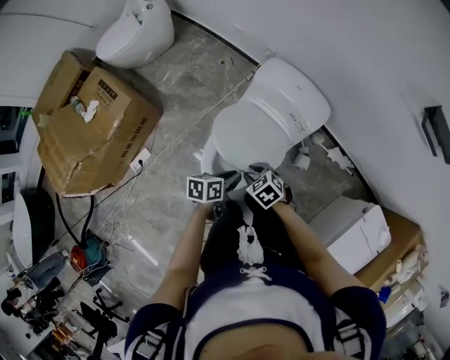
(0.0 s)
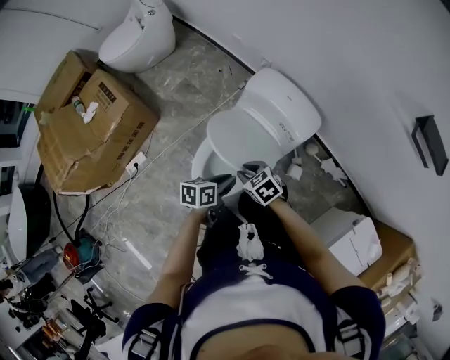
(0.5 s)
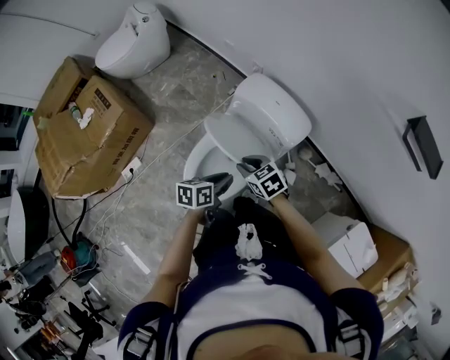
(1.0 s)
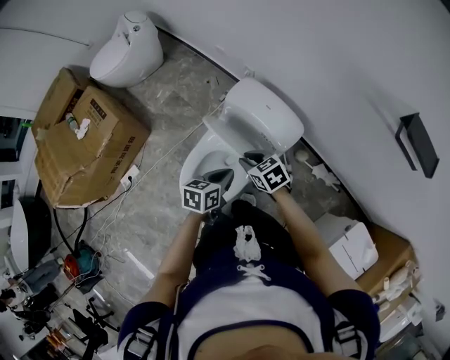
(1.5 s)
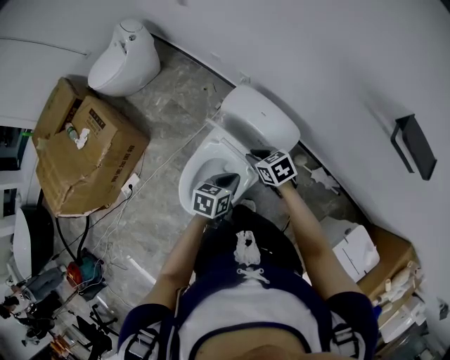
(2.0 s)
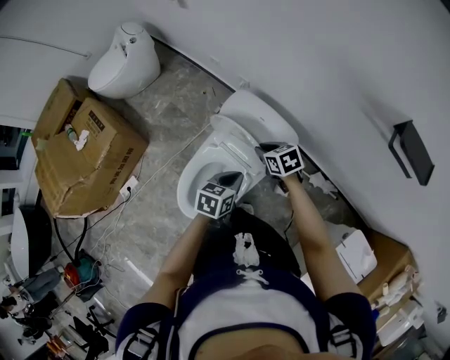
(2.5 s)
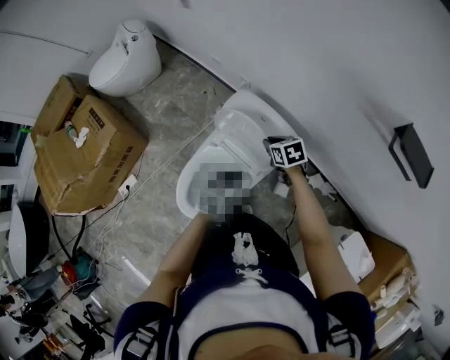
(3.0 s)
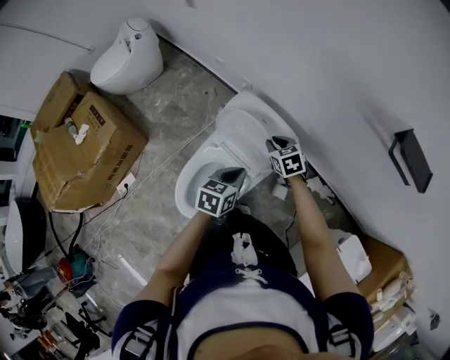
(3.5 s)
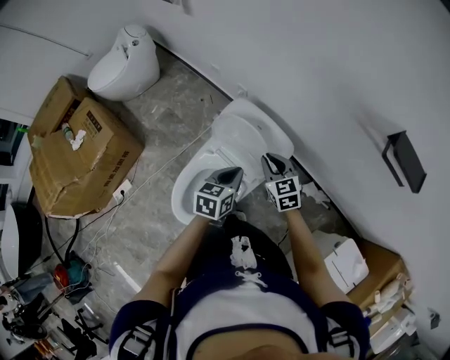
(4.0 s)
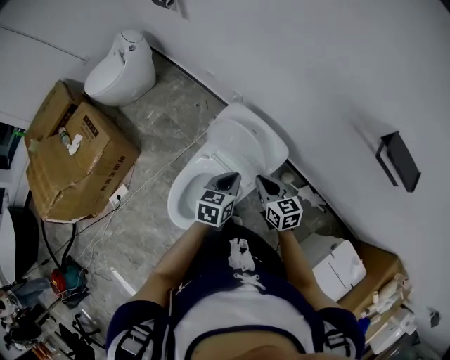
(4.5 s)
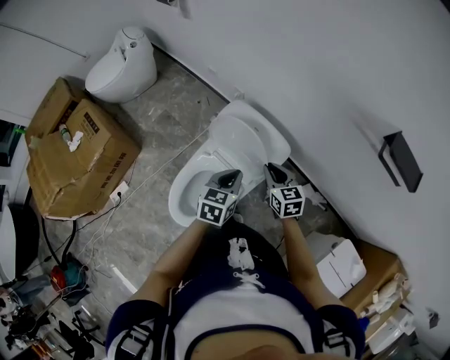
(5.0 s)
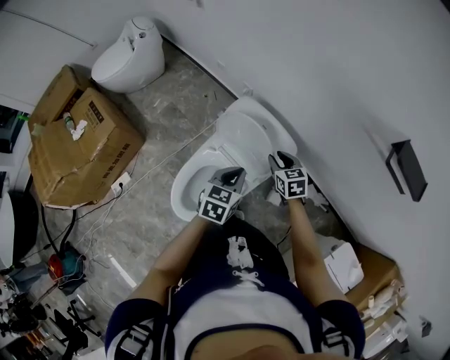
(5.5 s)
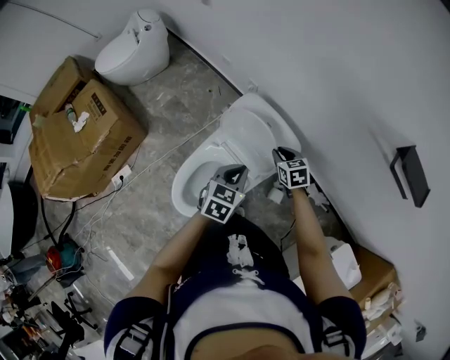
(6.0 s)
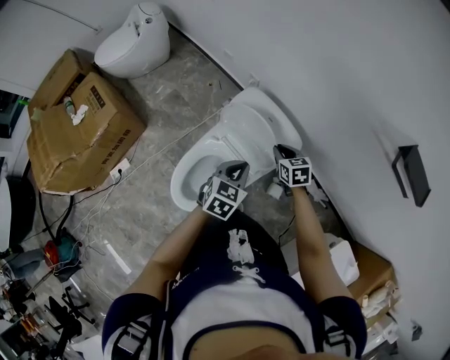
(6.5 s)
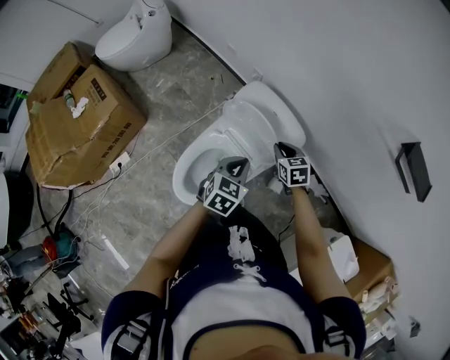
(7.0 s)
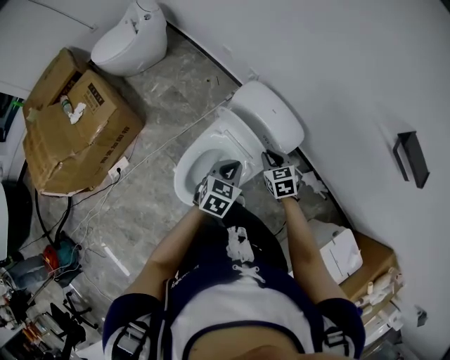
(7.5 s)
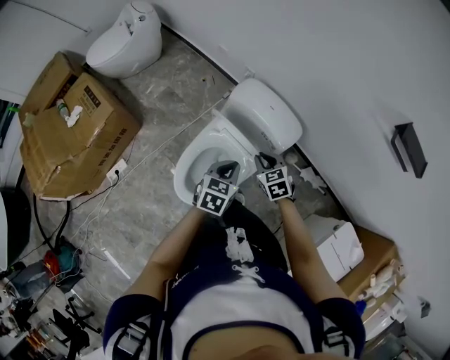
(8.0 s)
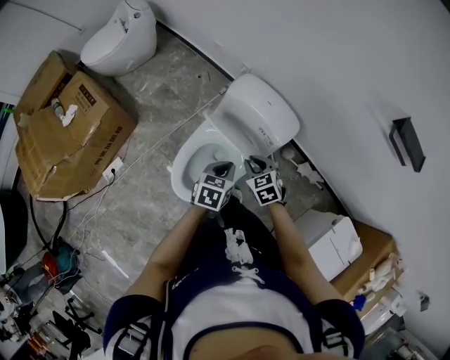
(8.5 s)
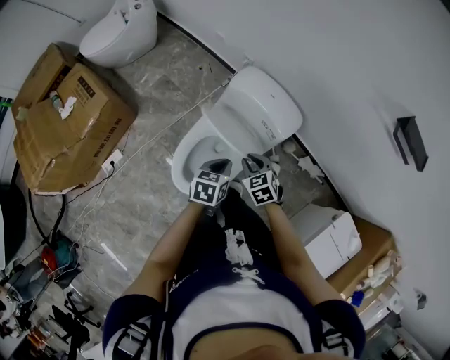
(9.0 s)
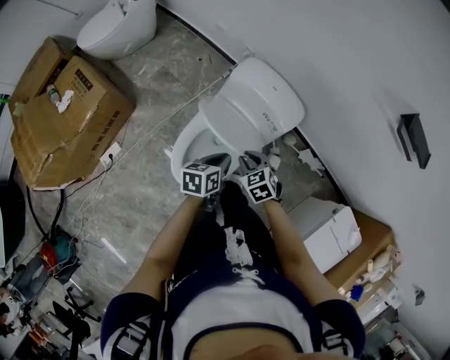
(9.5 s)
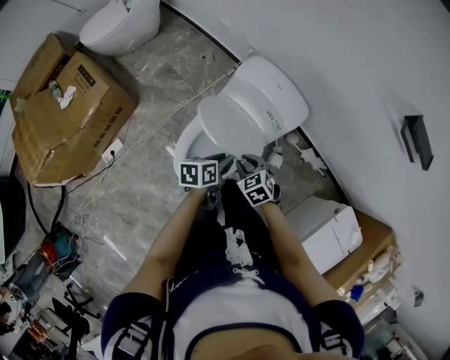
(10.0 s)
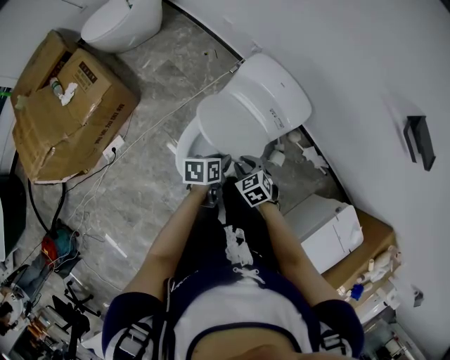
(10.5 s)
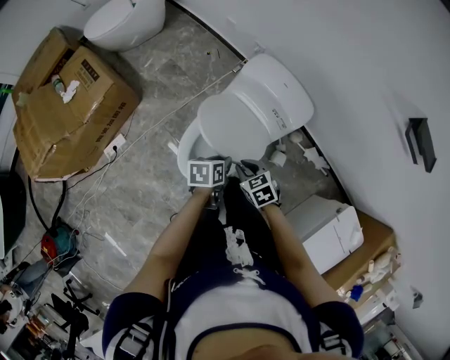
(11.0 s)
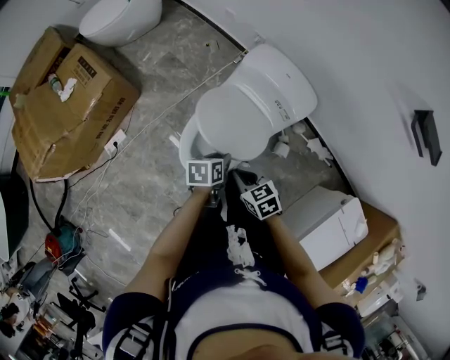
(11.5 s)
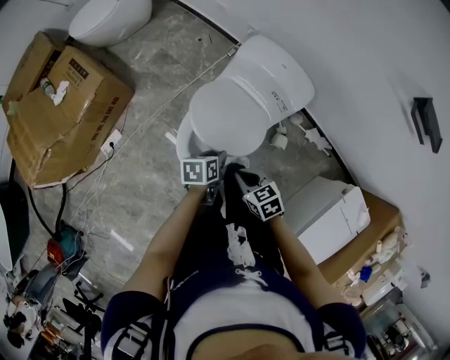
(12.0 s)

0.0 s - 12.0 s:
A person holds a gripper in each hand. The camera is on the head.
0.0 s - 2.0 s: Both grippers travel together to the right and forward, about 20 cm. The left gripper rotates roughly 20 degrees.
2.0 s - 4.0 s: The right gripper shifts approximately 5 cm to the right, moves about 10 cm forward and comes back, and swivels about 30 degrees; the left gripper shifts some 10 cm upward and forward.
4.0 s - 6.0 s: The right gripper shifts approximately 10 cm downward.
6.0 s - 8.0 s: The right gripper goes some 15 cm backward and to the left, while the left gripper shifts some 10 cm to the left and backward.
8.0 s - 10.0 s: The left gripper heads downward, covering some 5 cm, turns by approximately 40 degrees, and opens. The right gripper moves backward and to the left, roughly 10 cm.
10.0 s - 12.0 s: The left gripper changes place by approximately 10 cm. Meanwhile the right gripper shifts some 10 cm backward, and swivels approximately 20 degrees.

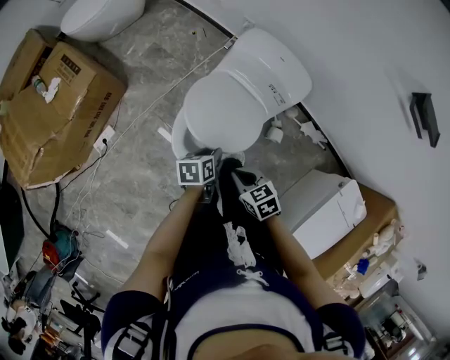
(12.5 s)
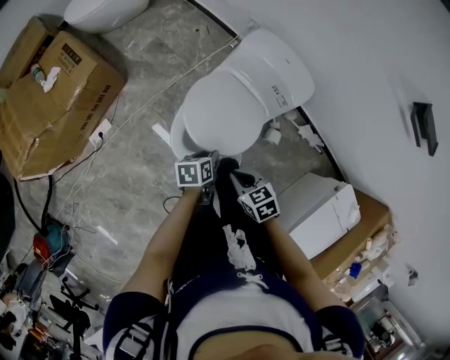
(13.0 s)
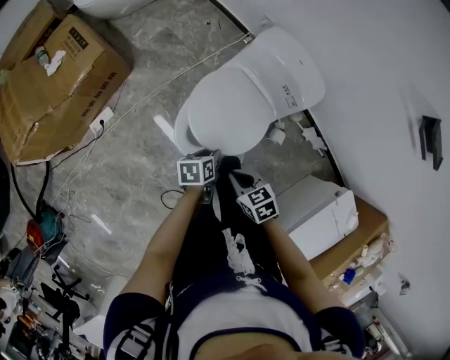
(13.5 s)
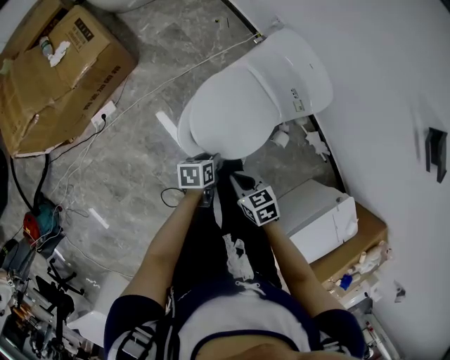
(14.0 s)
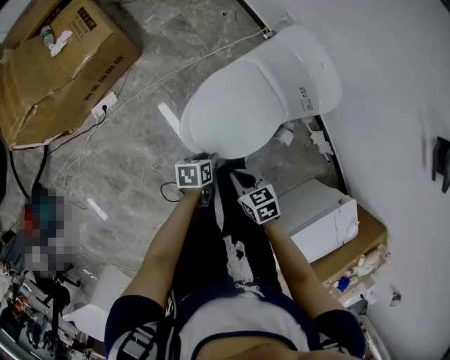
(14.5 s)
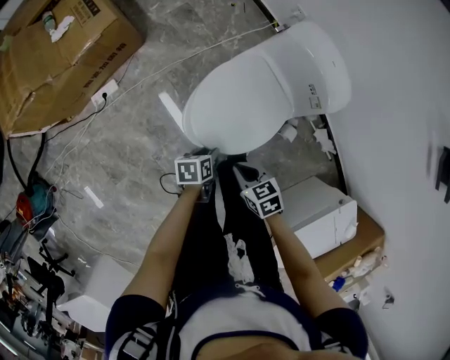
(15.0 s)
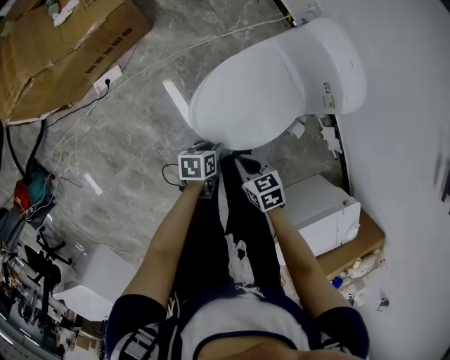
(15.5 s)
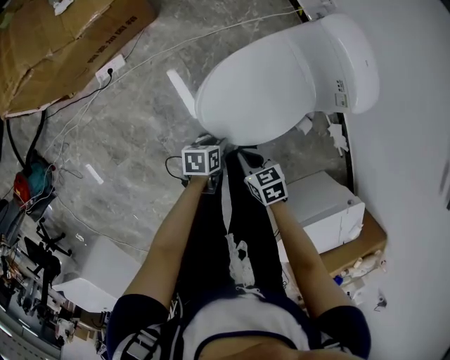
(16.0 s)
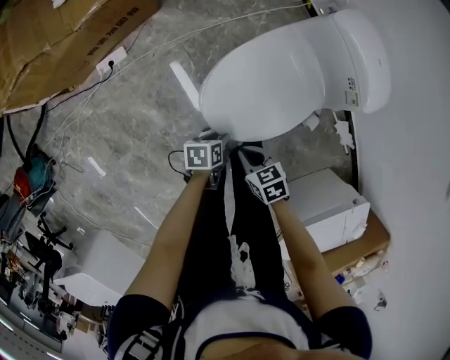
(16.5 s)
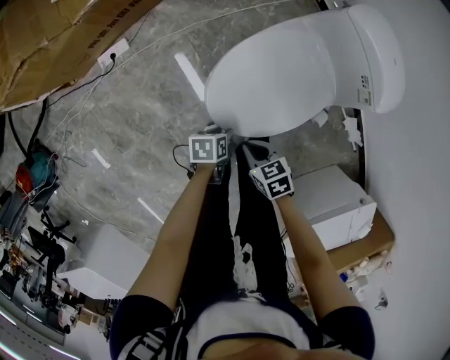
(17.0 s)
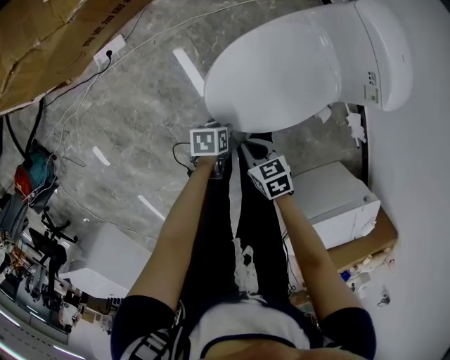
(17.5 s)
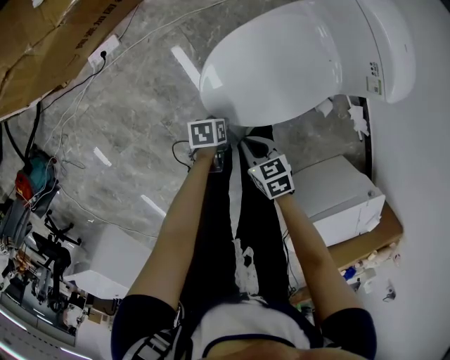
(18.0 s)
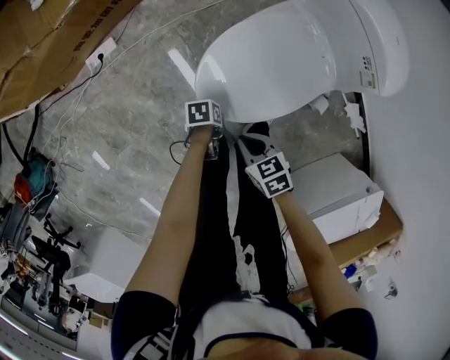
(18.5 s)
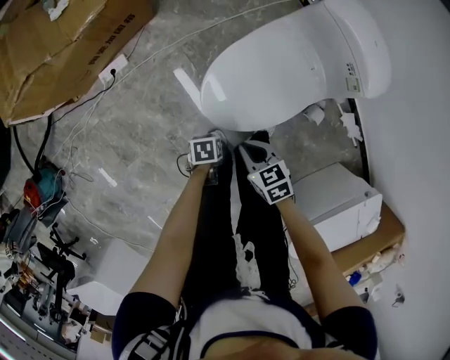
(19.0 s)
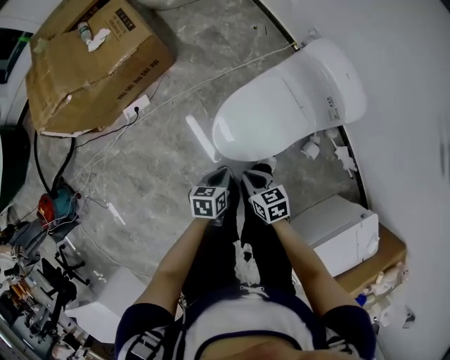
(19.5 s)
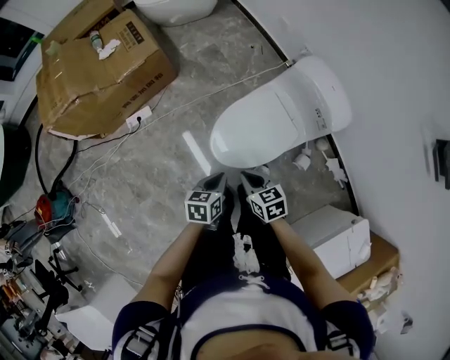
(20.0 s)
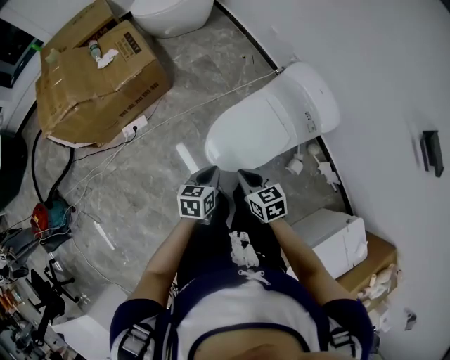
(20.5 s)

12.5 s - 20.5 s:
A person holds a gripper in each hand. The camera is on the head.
12.5 s - 14.5 s: The left gripper is displaced downward, to the left and backward by about 15 cm. Meanwhile the right gripper moves downward, roughly 5 cm.
14.5 s - 16.5 s: Both grippers travel together downward, about 10 cm.
16.5 s - 18.5 s: The left gripper moves downward, about 10 cm, and swivels roughly 20 degrees.
18.5 s - 20.5 s: Both grippers travel together upward, about 30 cm. The left gripper turns by about 50 degrees, and closes its fingers.

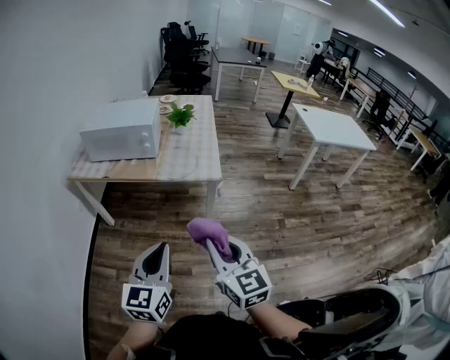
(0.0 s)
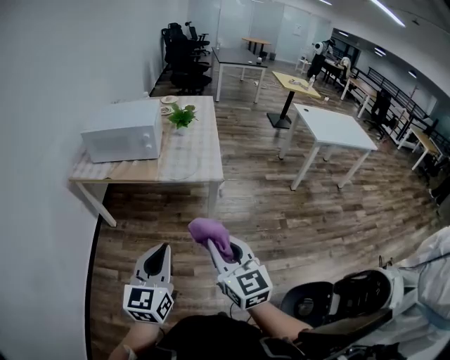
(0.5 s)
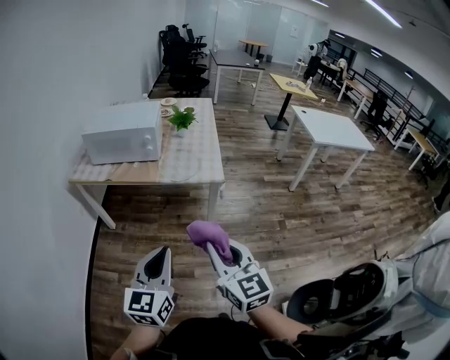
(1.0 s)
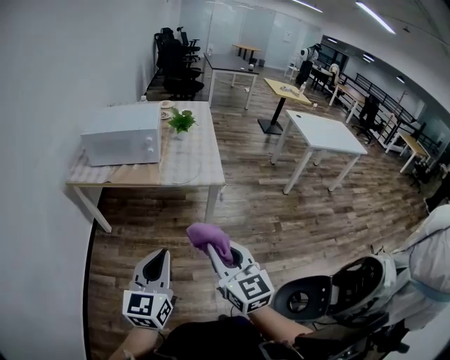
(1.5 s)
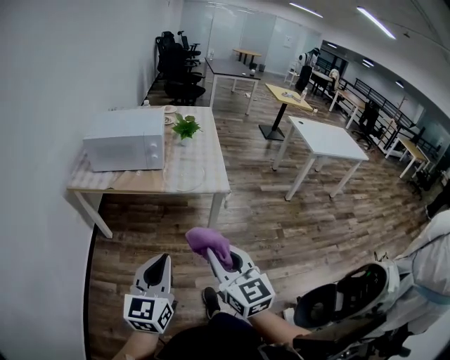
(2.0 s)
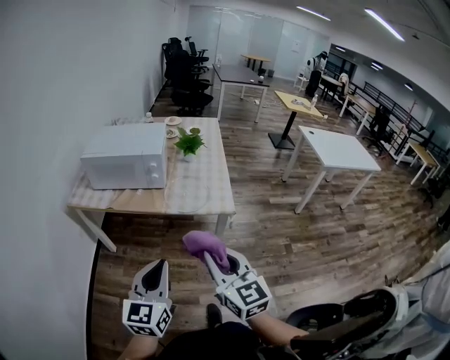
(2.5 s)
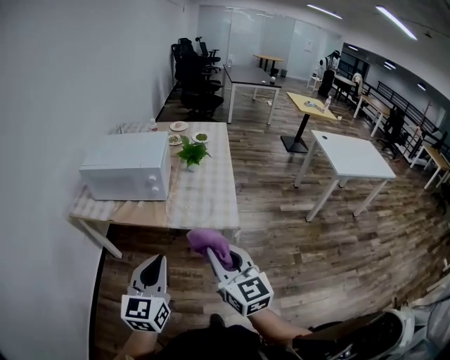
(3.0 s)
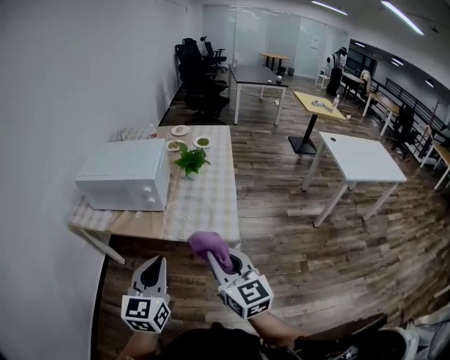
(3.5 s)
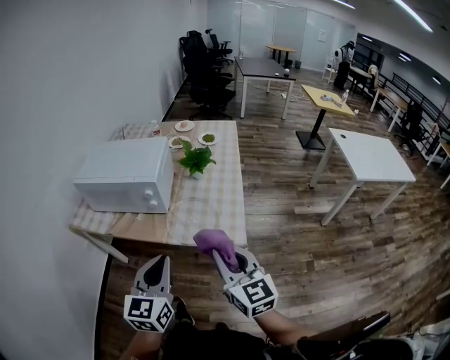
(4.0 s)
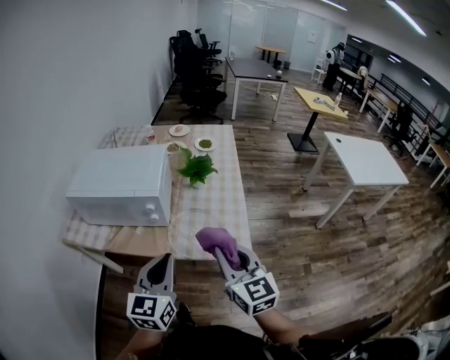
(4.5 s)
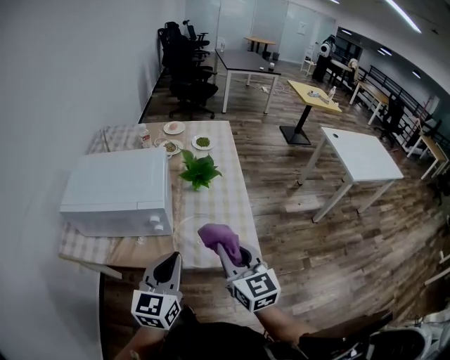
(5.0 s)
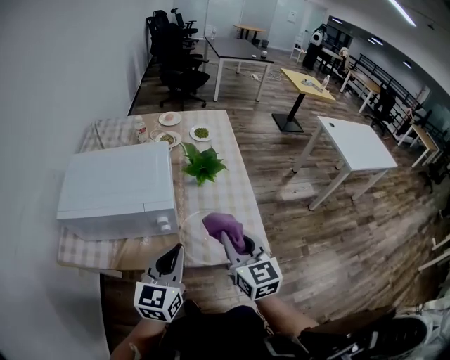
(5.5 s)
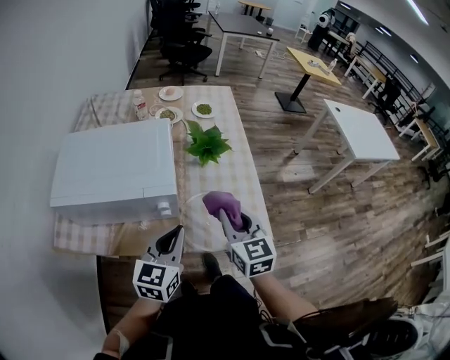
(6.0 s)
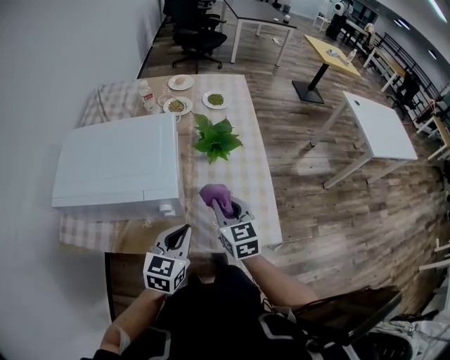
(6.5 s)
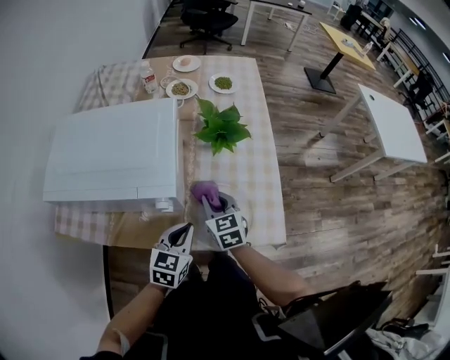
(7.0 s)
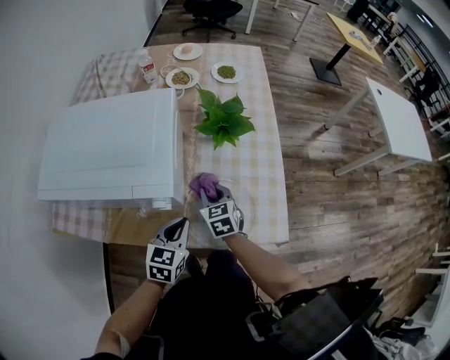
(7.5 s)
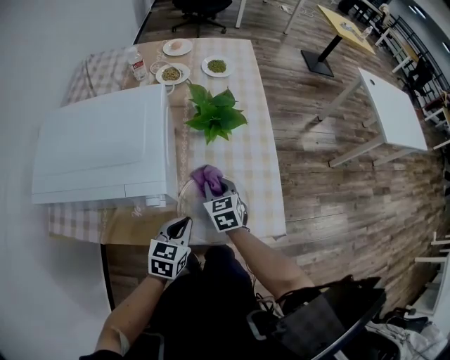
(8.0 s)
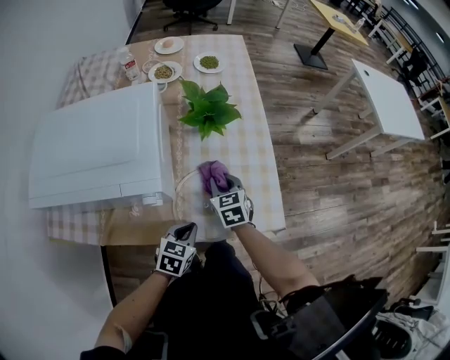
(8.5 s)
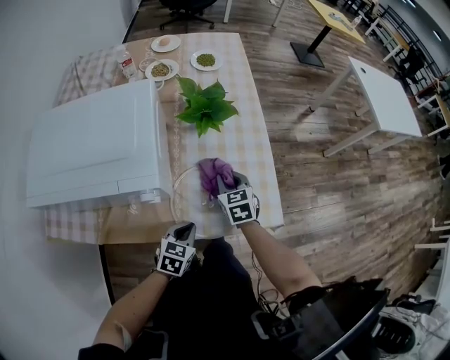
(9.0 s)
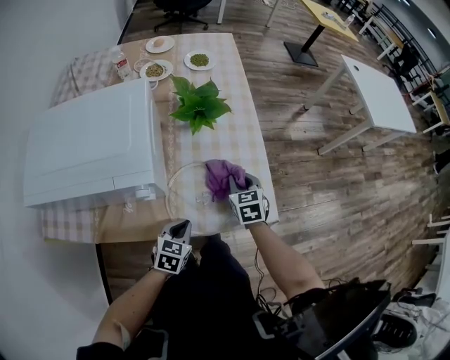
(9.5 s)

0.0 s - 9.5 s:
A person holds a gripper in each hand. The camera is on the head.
0.0 s - 2.0 s: Both grippers travel together to the left, approximately 10 cm.
2.0 s - 4.0 s: The left gripper heads forward, covering roughly 30 cm. Meanwhile the right gripper heads forward and to the right, covering some 35 cm.
4.0 s - 5.5 s: The grippers both shift forward and to the left by some 20 cm.
5.5 s - 7.5 s: Both grippers move downward and forward, roughly 30 cm. The left gripper changes its angle by roughly 30 degrees. Meanwhile the right gripper swivels about 30 degrees.
7.5 s - 9.5 s: The left gripper shifts about 10 cm downward. The right gripper goes approximately 15 cm to the right.
